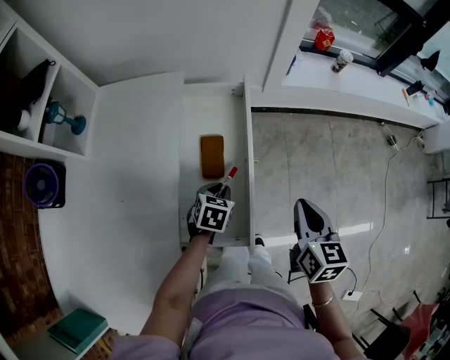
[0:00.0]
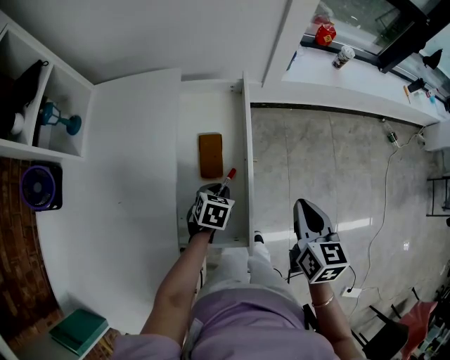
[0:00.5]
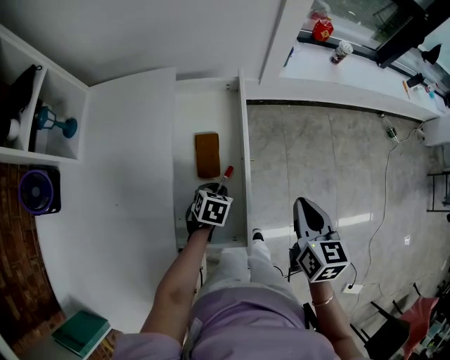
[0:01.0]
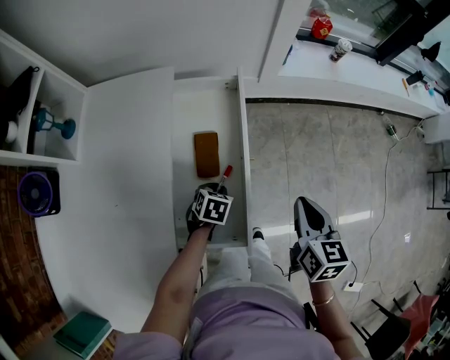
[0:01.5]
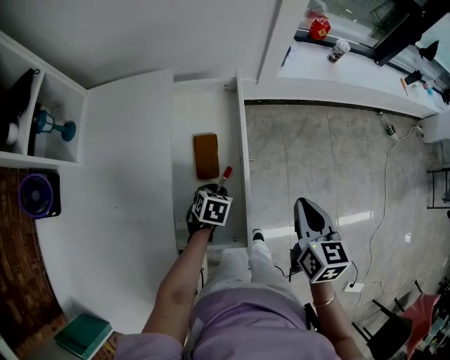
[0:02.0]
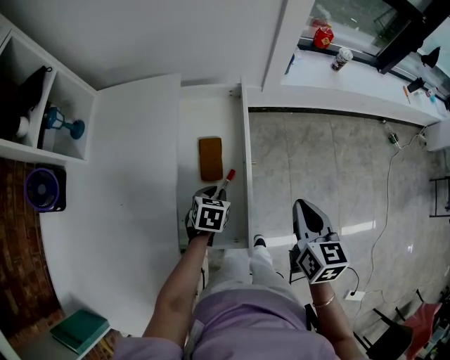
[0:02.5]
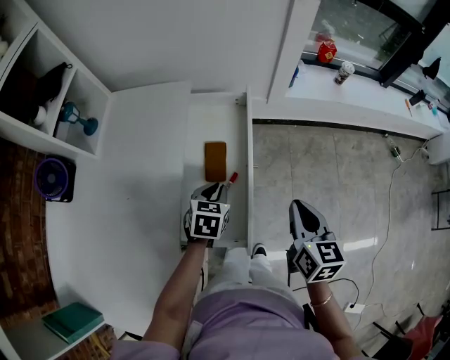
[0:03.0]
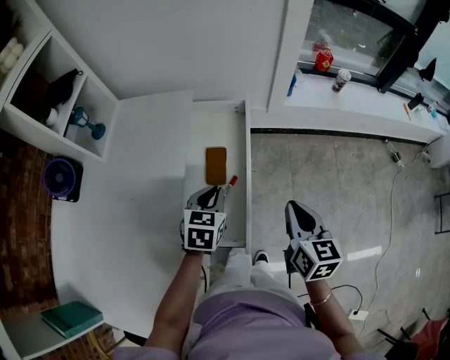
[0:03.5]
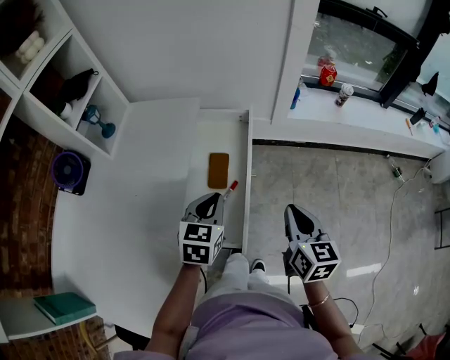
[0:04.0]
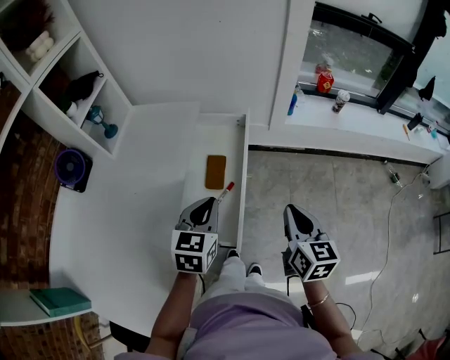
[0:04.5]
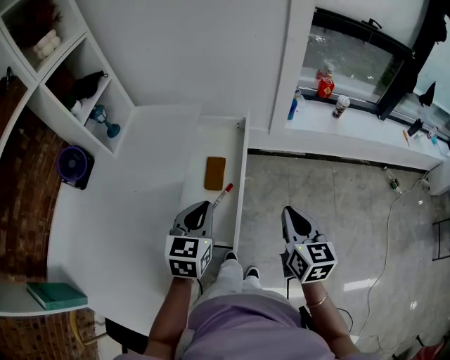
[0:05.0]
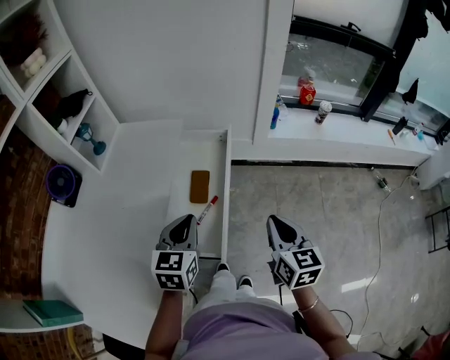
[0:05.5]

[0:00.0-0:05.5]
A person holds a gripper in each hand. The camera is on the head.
0:00.0 to 0:02.0: The left gripper is displaced downward by roughly 5 cm.
0:02.0 to 0:03.5: The left gripper shifts some 20 cm upward, and rotates roughly 30 degrees.
0:03.5 to 0:05.5: The right gripper shifts by approximately 5 cm; the left gripper travels upward and backward by about 15 cm.

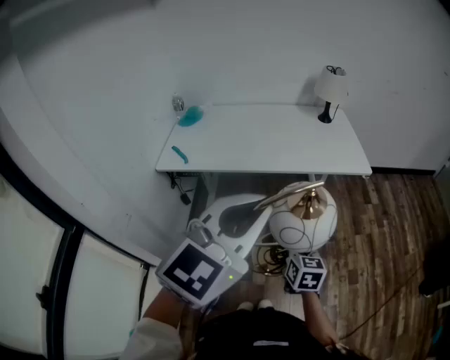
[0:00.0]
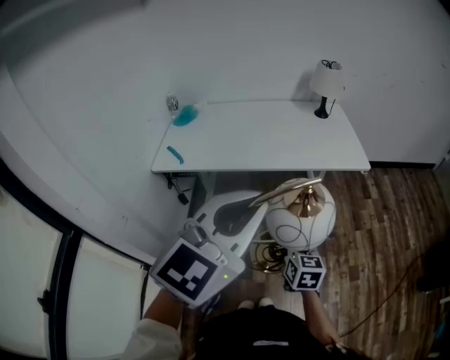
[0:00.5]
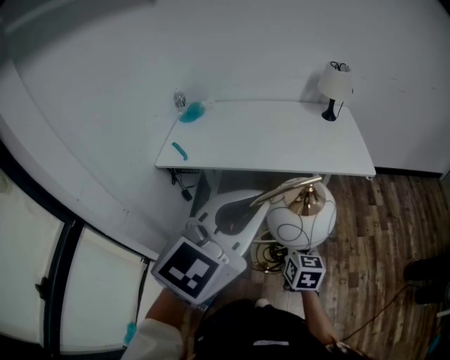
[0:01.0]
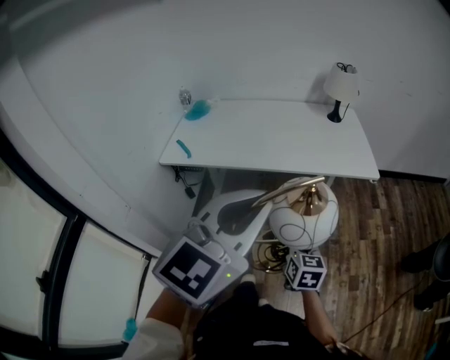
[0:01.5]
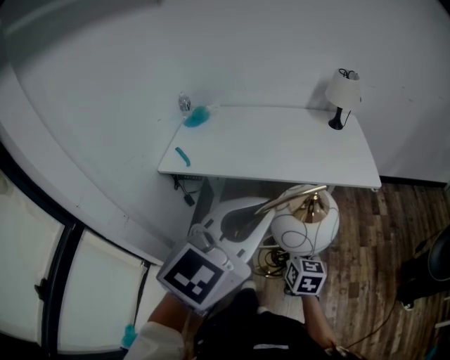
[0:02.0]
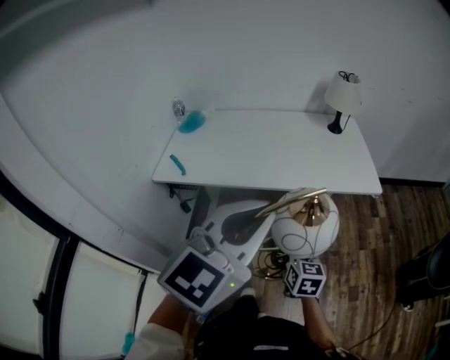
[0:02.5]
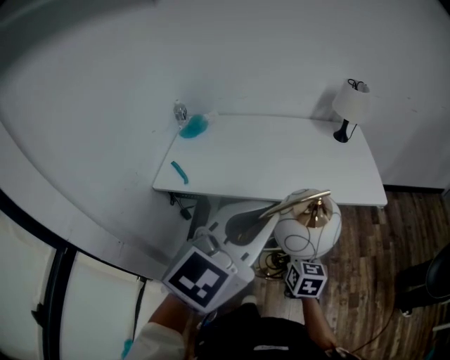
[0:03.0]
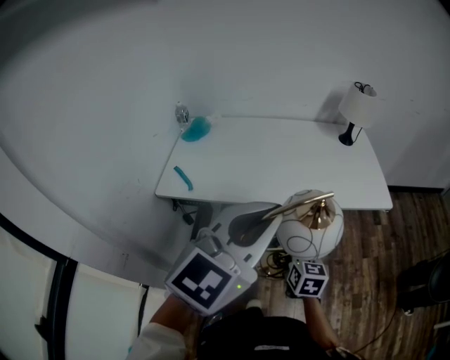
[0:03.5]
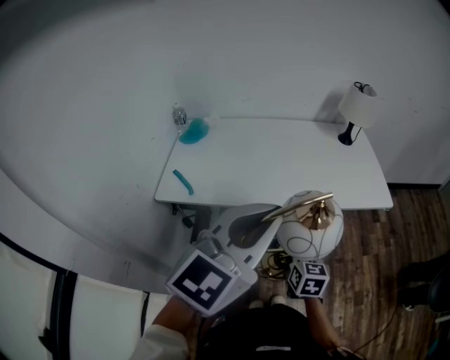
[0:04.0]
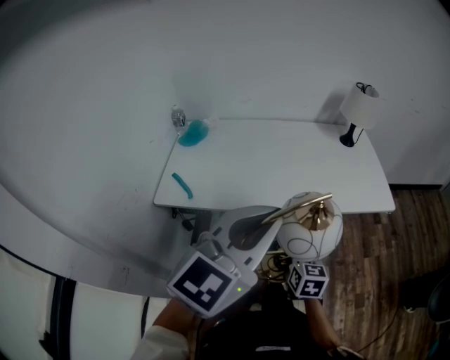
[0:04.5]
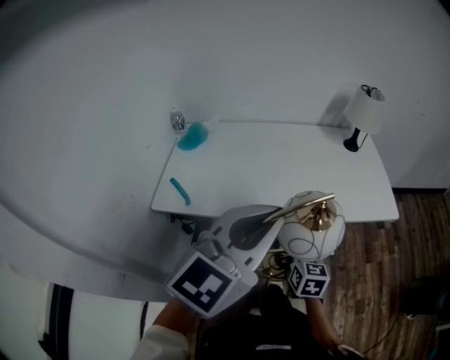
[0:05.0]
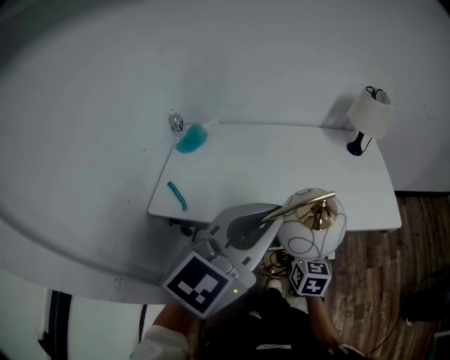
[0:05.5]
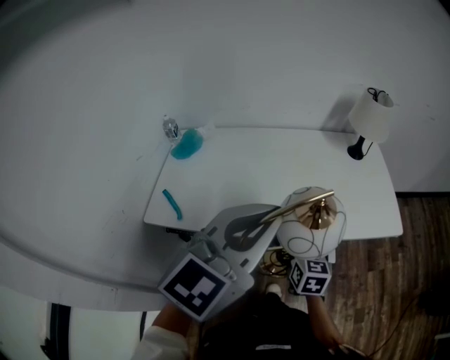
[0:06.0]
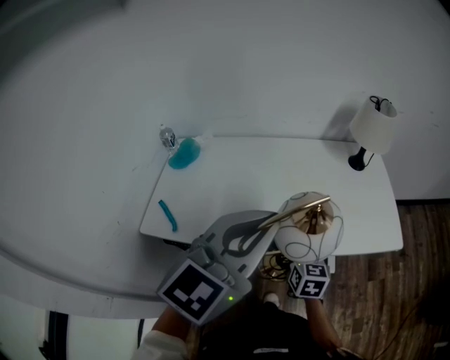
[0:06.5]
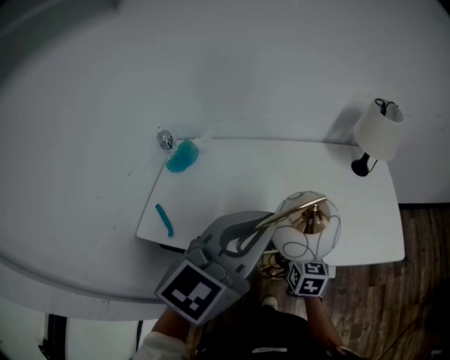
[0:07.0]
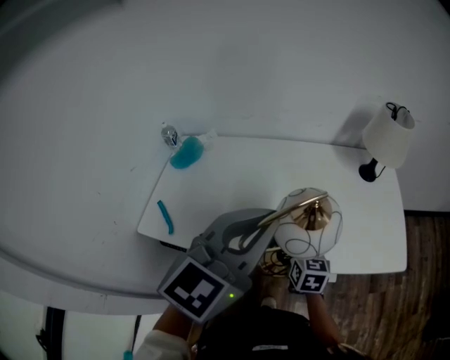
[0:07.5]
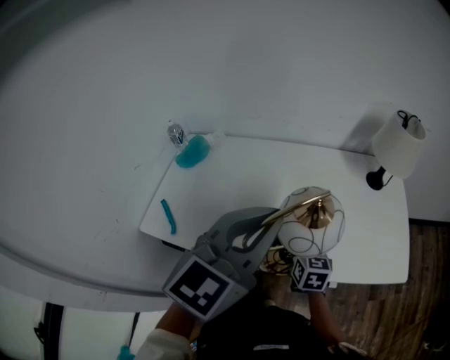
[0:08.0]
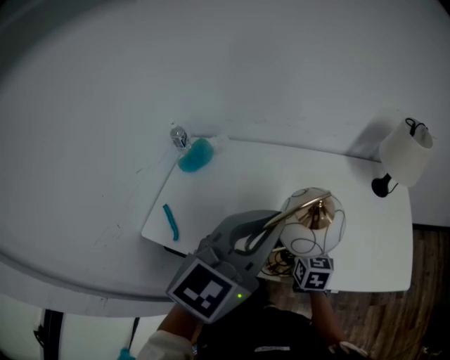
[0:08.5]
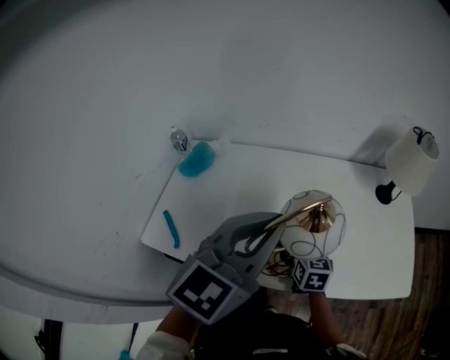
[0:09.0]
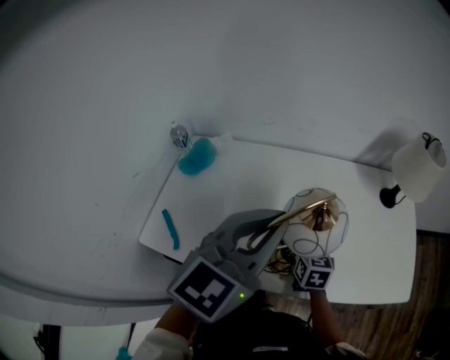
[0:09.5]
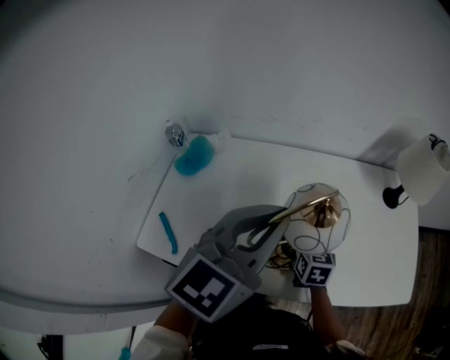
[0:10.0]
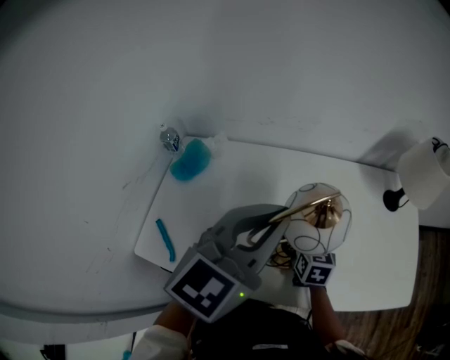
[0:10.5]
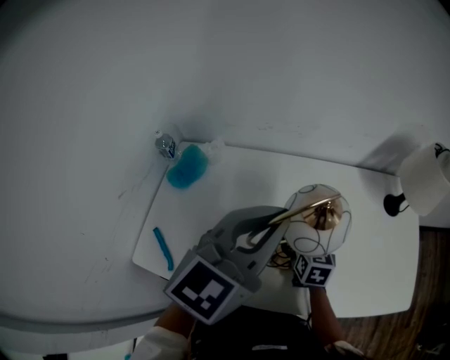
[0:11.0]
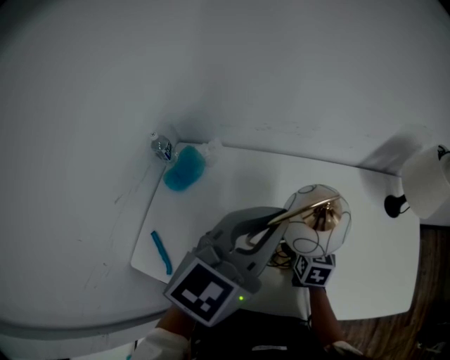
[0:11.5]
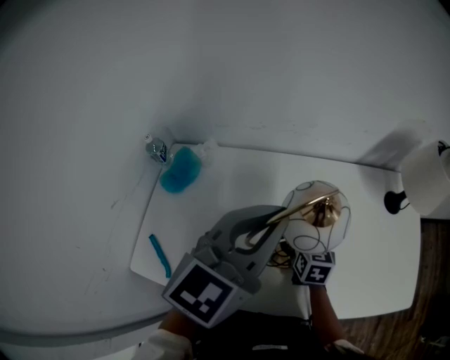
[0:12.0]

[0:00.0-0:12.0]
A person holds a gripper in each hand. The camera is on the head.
0:00.0 to 0:02.0: The two grippers go some 5 cm forward.
0:02.0 to 0:04.0: The grippers both shift to the left and forward by about 15 cm.
0:04.0 to 0:06.0: Both grippers travel together forward, about 15 cm.
0:06.0 to 0:08.0: Both grippers travel together forward, about 15 cm.
0:08.0 to 0:10.0: Both grippers travel together forward and to the left, roughly 15 cm.
0:10.0 to 0:12.0: The grippers both shift forward by roughly 10 cm.

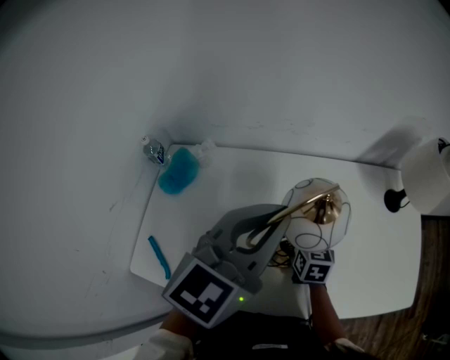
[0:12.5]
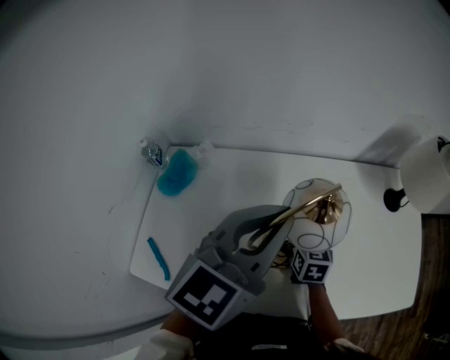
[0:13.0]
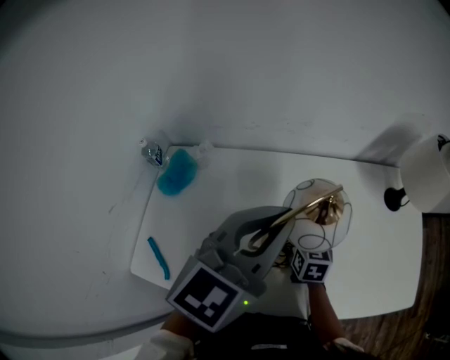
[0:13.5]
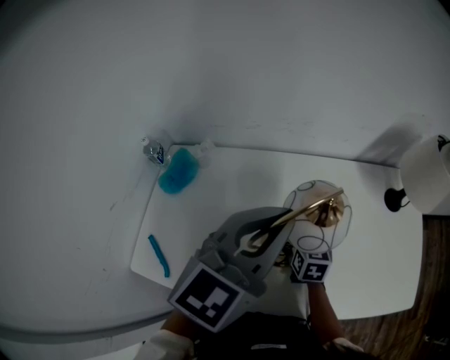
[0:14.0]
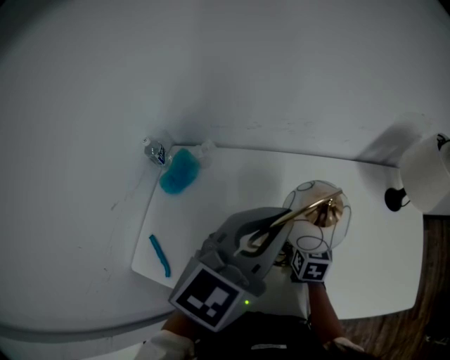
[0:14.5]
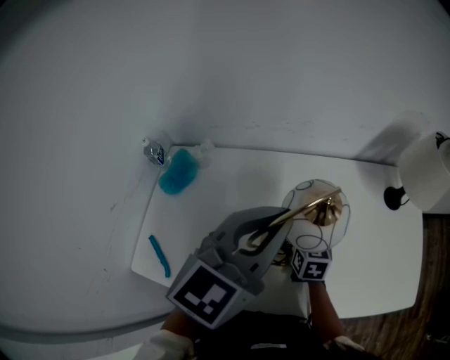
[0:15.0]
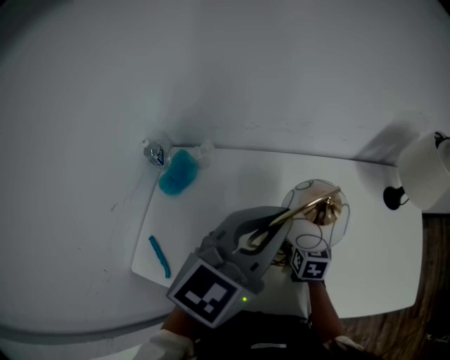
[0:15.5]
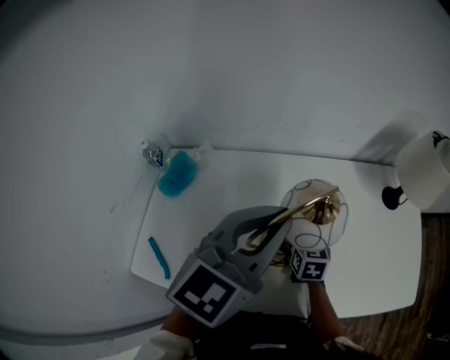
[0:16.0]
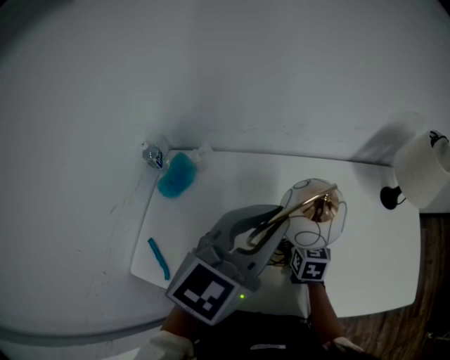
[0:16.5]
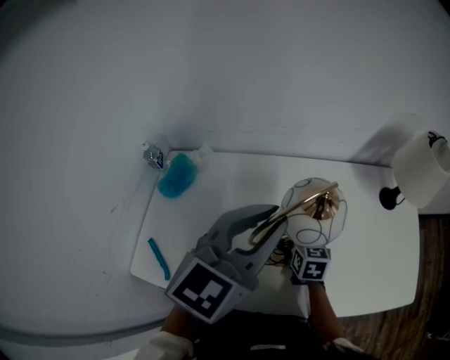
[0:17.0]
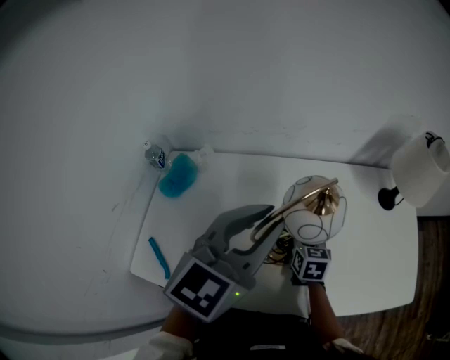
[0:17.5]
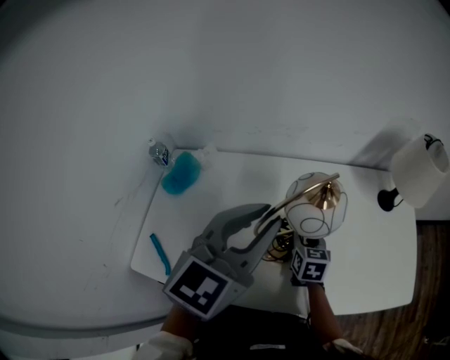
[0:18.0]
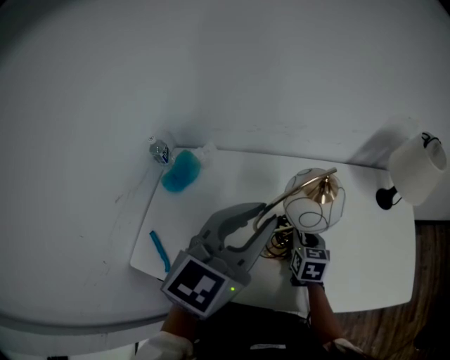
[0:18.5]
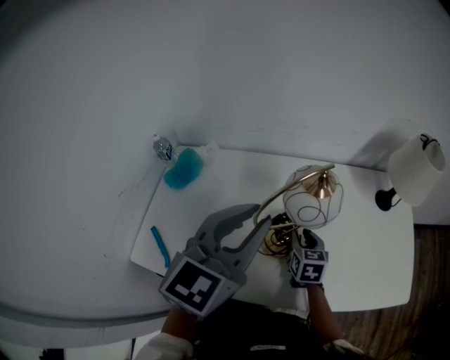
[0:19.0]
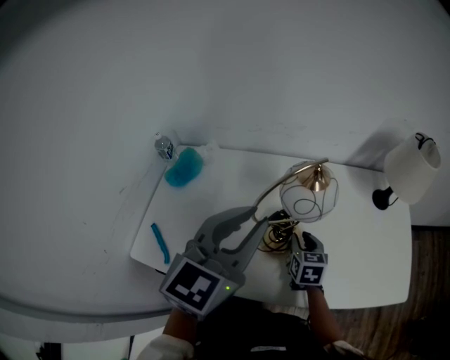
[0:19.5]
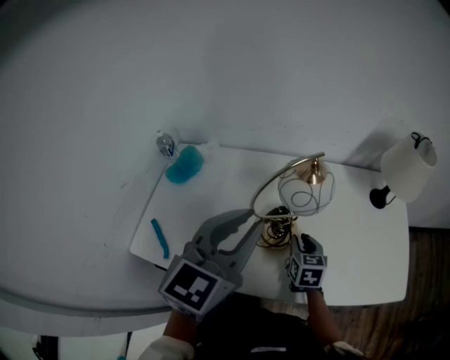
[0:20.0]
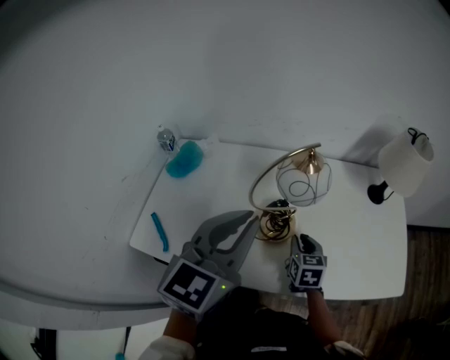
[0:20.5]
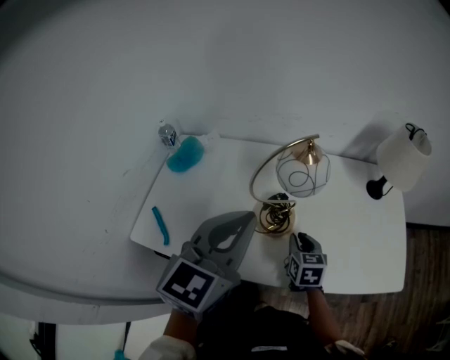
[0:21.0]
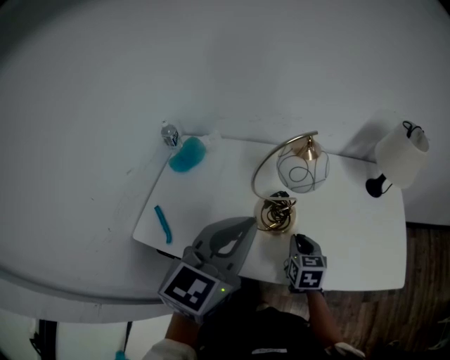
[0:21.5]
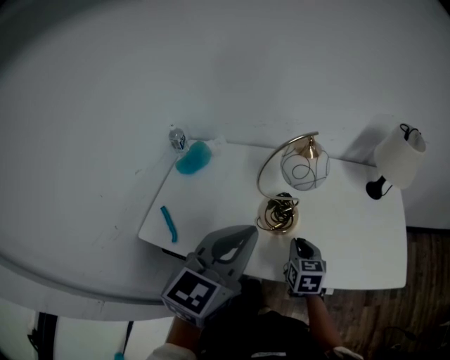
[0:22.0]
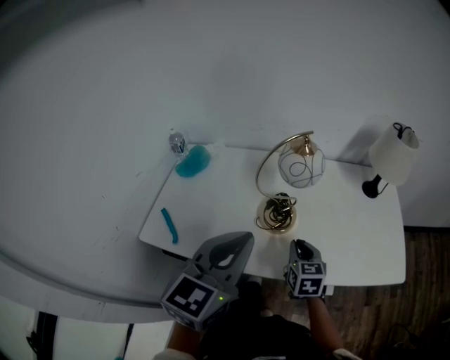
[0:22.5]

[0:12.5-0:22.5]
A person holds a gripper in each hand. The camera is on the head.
0:12.5 to 0:16.5: Both grippers stay put.
0:16.5 to 0:18.5: The grippers make only small movements.
0:18.5 to 0:20.5: The grippers both shift backward by roughly 10 cm.
0:20.5 to 0:22.5: The grippers both shift backward by approximately 10 cm.
